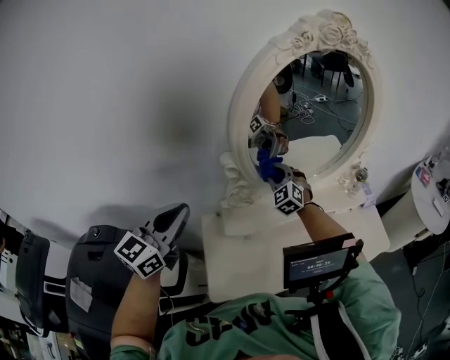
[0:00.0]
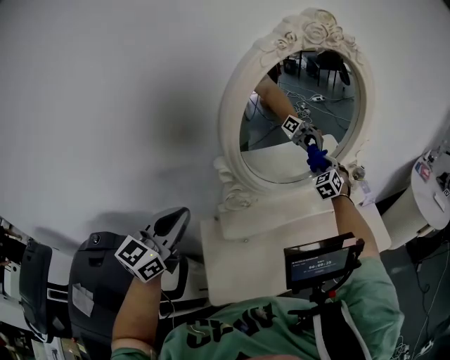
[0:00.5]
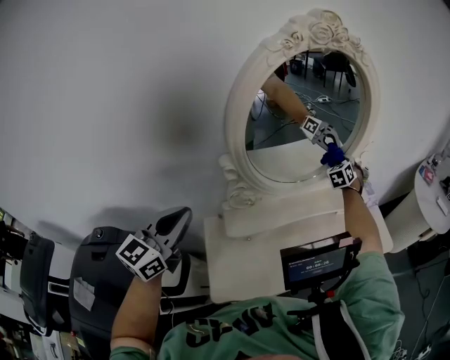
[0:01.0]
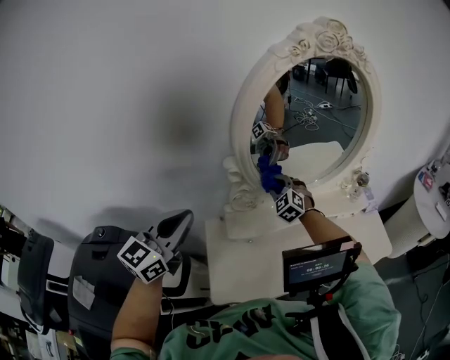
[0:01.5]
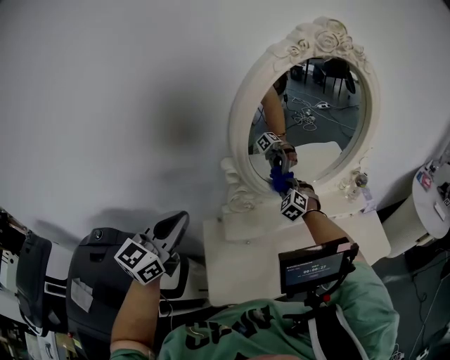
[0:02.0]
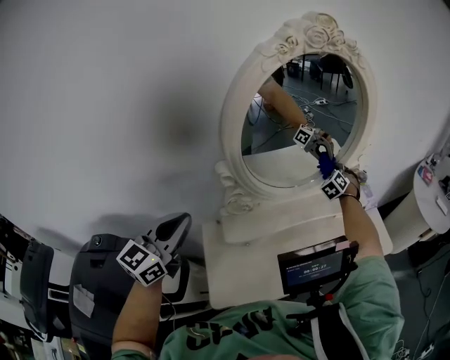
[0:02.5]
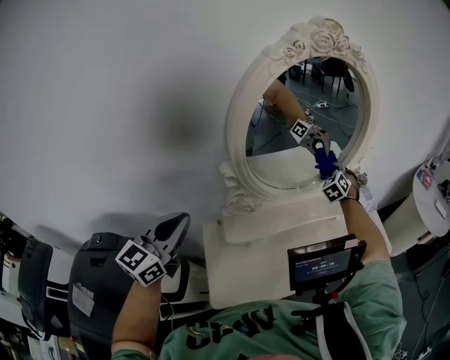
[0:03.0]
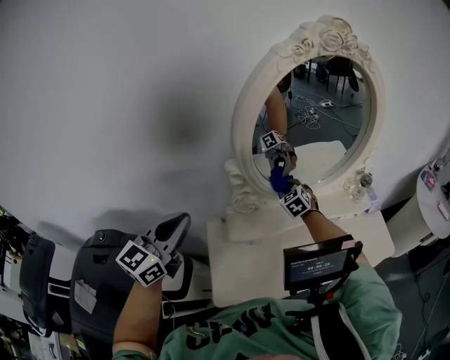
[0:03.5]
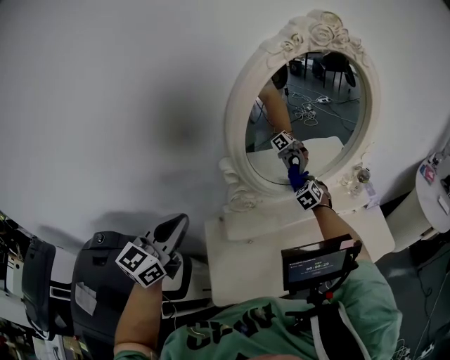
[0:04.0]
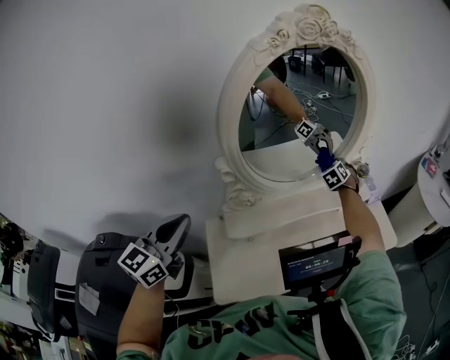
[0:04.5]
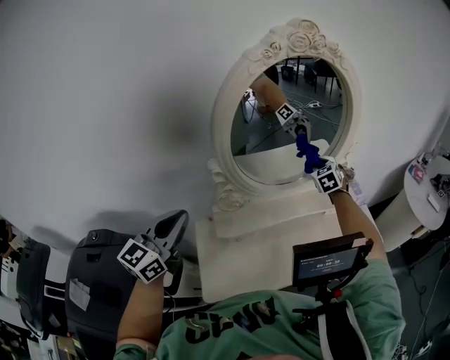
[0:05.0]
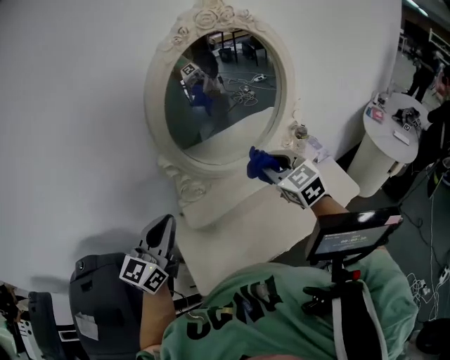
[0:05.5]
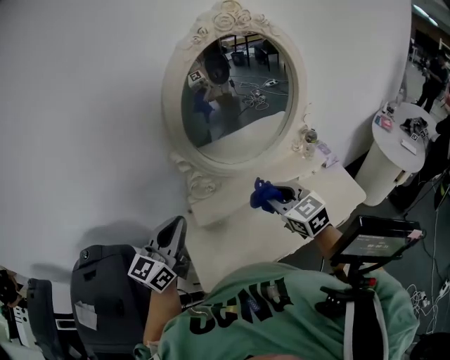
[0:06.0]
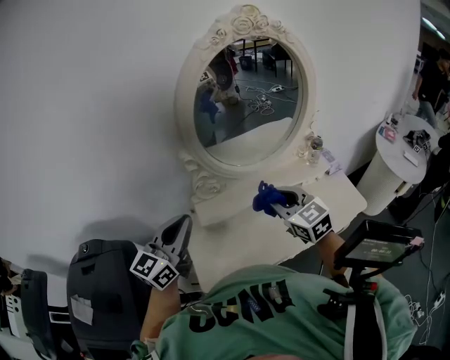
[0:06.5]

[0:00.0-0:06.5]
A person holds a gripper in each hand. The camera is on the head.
0:00.0 to 0:02.0: The right gripper swings left and right, approximately 30 cm each way, with 2 reversals.
0:02.0 to 0:04.5: The right gripper moves left and right over approximately 25 cm, changing direction 2 times, and swivels approximately 30 degrees.
0:04.5 to 0:06.5: The left gripper goes about 5 cm to the right. The right gripper shifts about 40 cm backward and upward, and changes its angle by approximately 50 degrees.

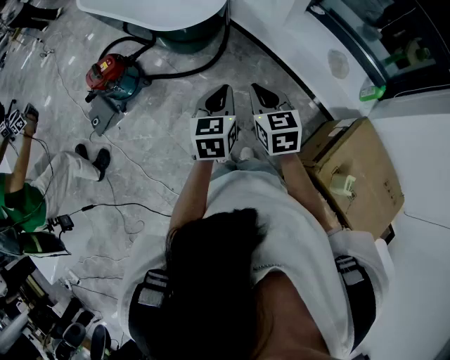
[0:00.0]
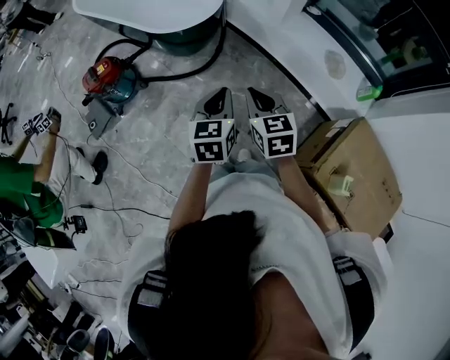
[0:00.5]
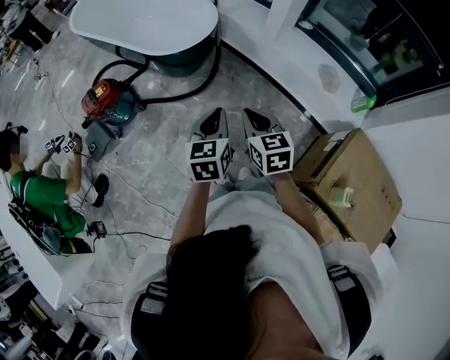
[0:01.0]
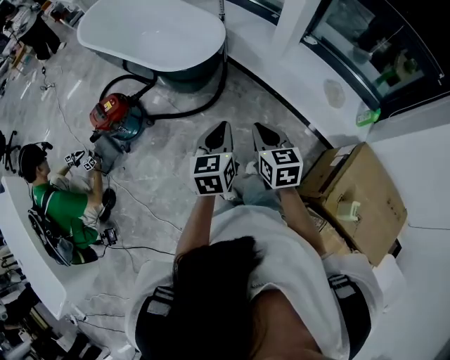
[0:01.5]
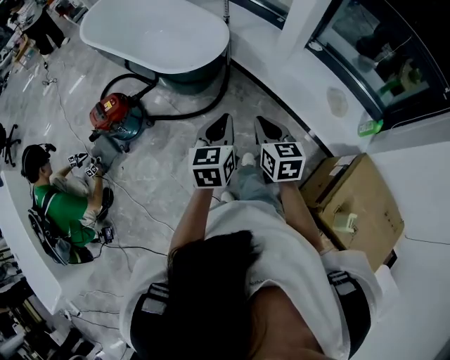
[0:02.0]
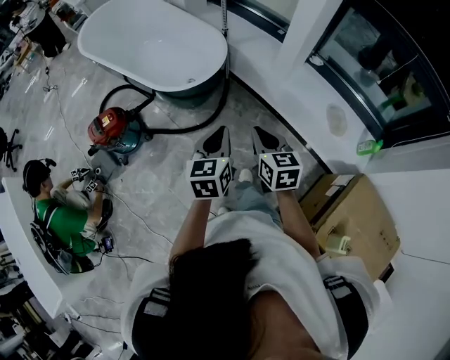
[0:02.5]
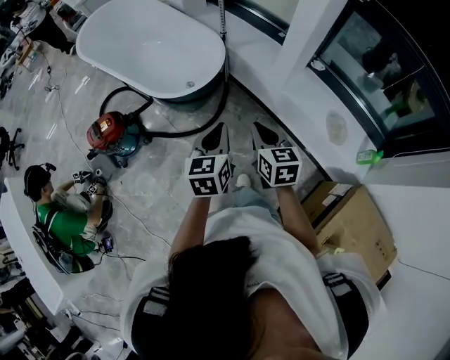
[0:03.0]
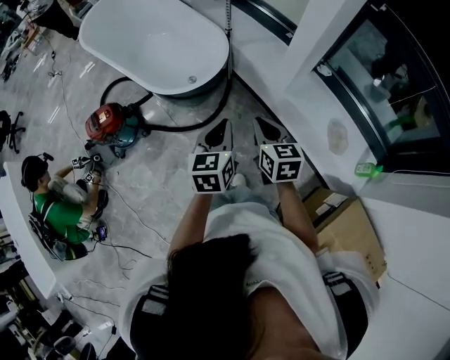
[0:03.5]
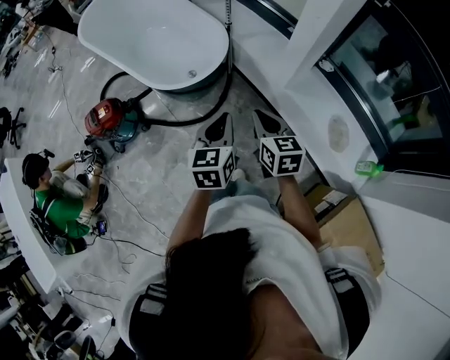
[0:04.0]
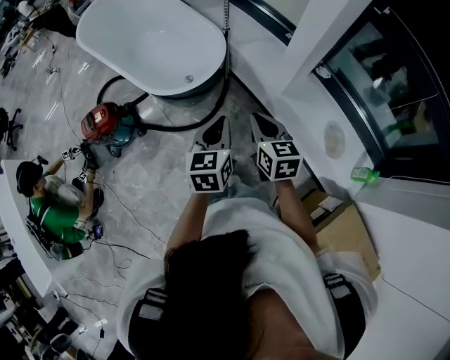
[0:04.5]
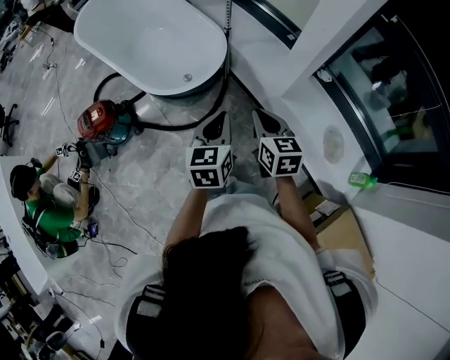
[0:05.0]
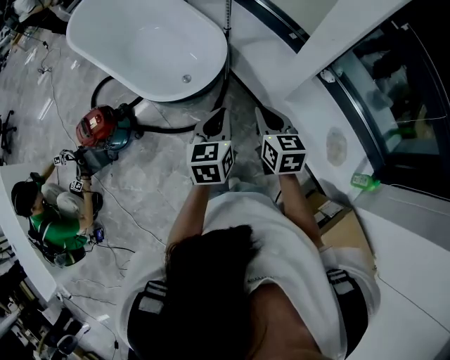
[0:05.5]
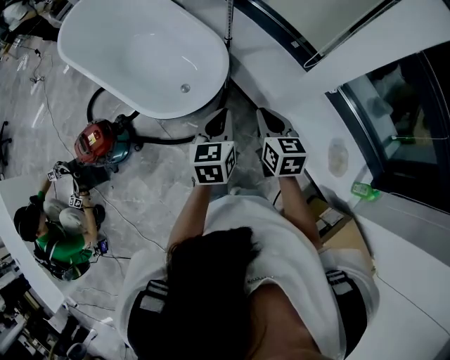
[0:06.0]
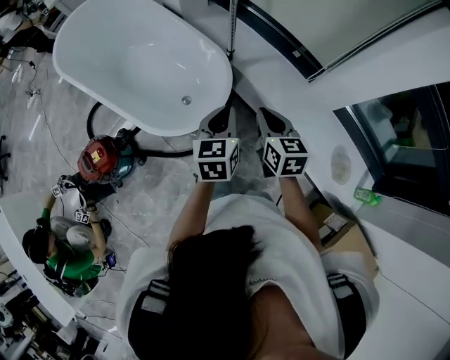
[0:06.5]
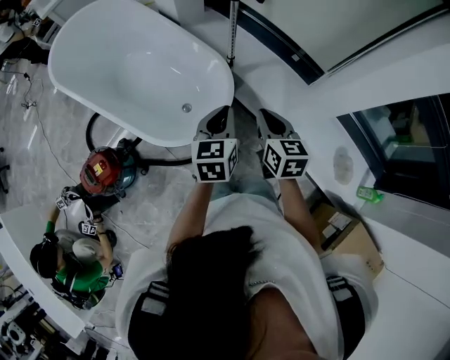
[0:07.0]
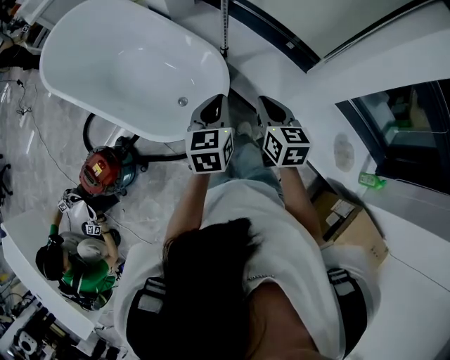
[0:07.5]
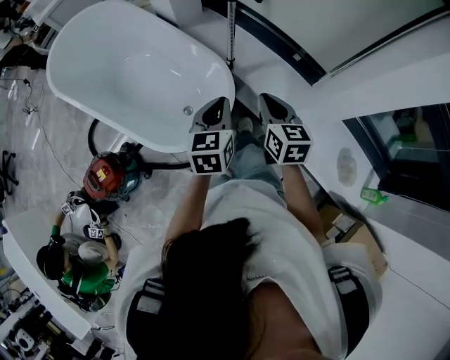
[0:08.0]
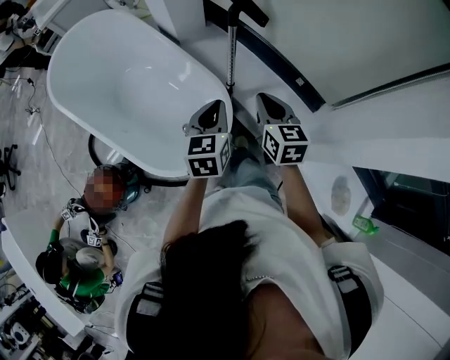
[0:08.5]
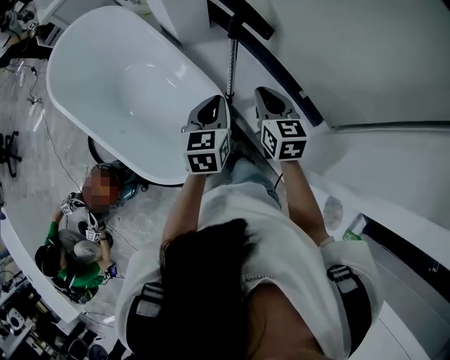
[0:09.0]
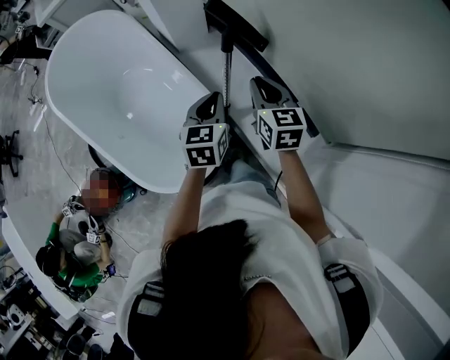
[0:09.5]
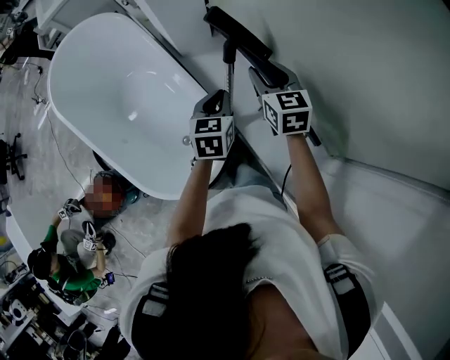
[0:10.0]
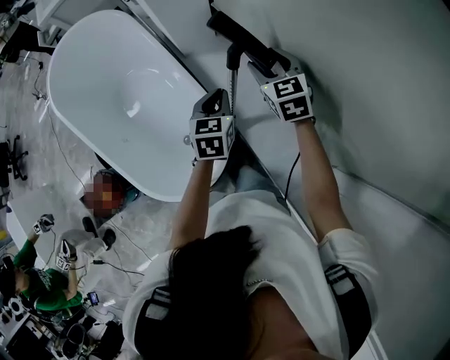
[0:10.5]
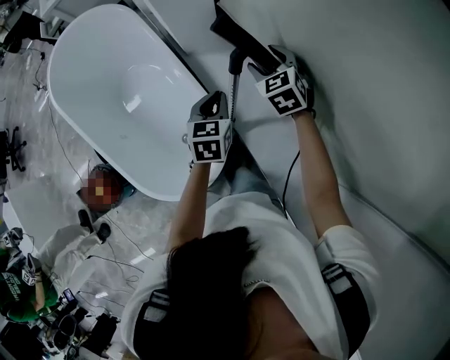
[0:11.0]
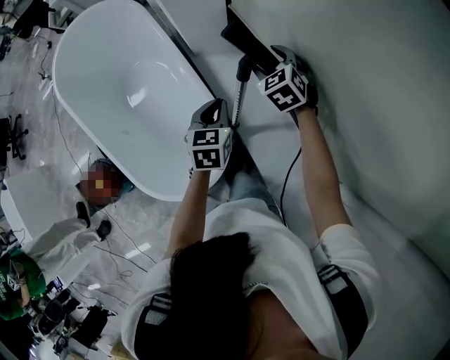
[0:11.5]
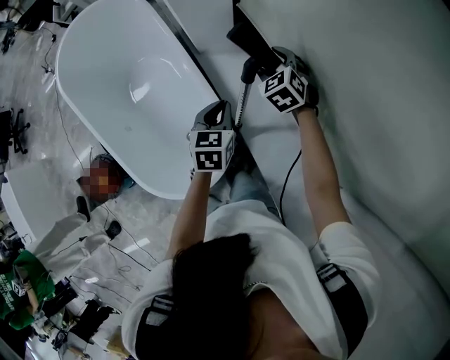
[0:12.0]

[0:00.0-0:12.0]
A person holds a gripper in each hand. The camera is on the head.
0:00.0 to 0:02.0: The two grippers go roughly 10 cm forward.
0:02.0 to 0:04.0: The grippers both shift forward and to the right by roughly 20 cm.
0:04.0 to 0:06.0: The two grippers go about 20 cm forward.
0:06.0 to 0:08.0: Both grippers move forward, some 15 cm.
0:08.0 to 0:10.0: Both grippers travel together forward, about 35 cm. The right gripper opens up.
0:10.0 to 0:12.0: The right gripper shifts roughly 15 cm forward and downward, swivels approximately 40 degrees, and opens its fingers, while the left gripper shifts by about 5 cm.

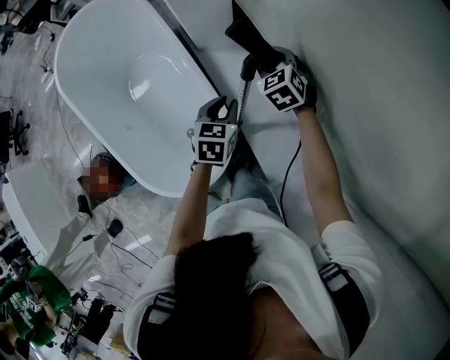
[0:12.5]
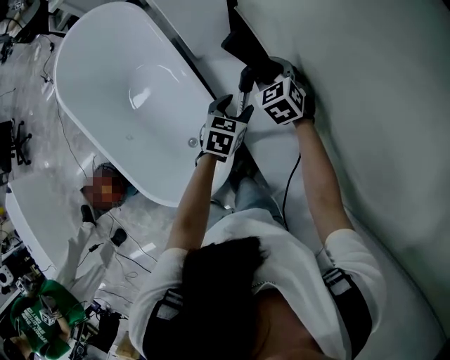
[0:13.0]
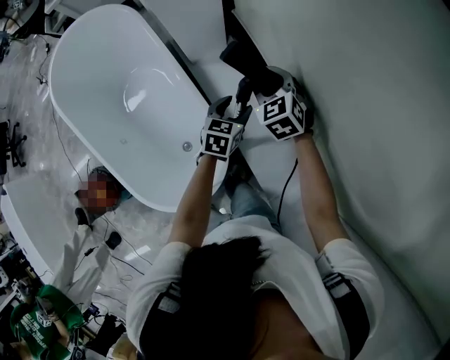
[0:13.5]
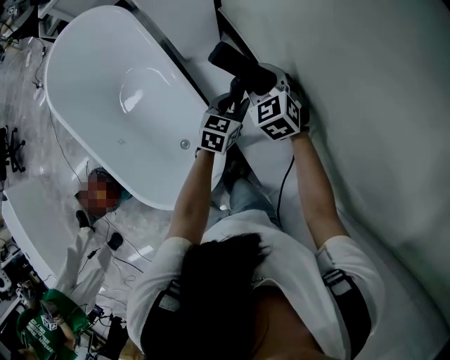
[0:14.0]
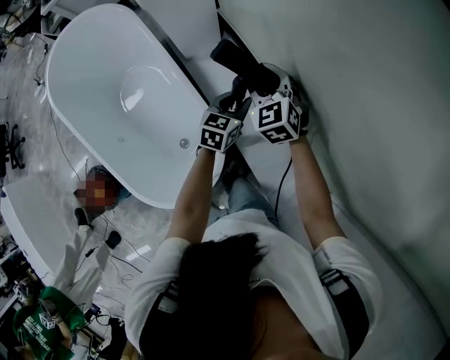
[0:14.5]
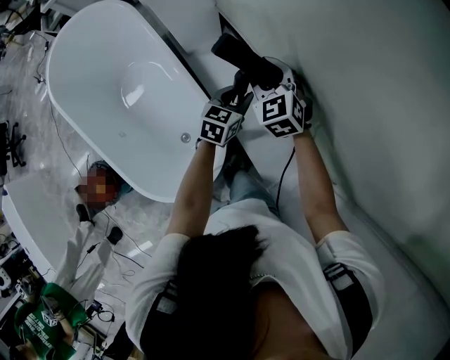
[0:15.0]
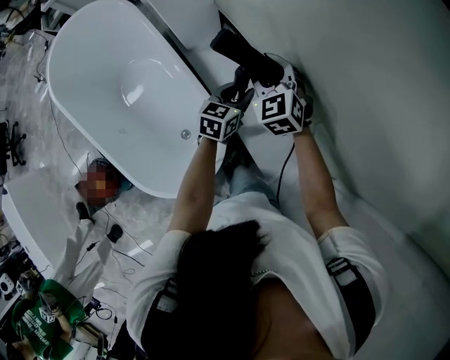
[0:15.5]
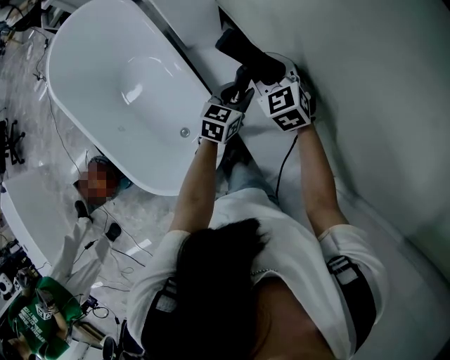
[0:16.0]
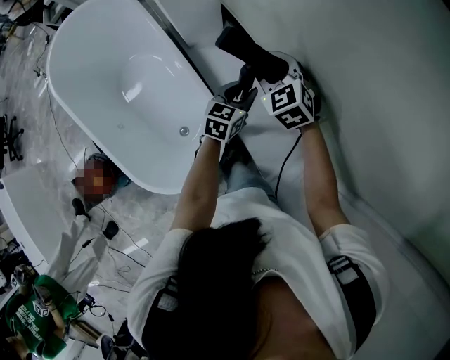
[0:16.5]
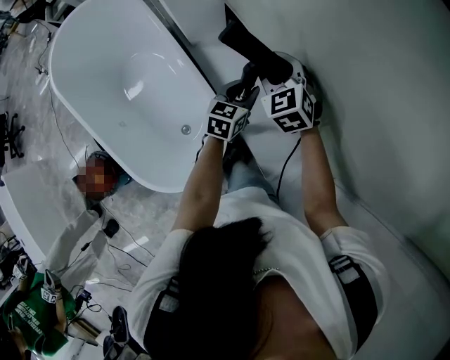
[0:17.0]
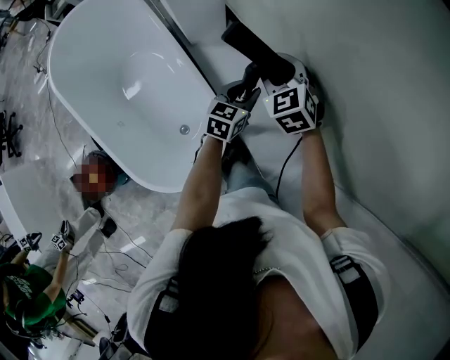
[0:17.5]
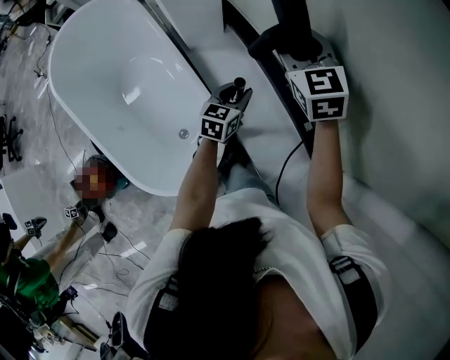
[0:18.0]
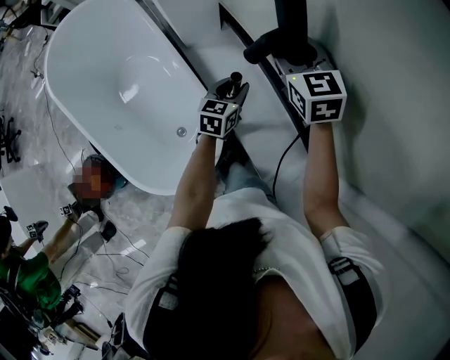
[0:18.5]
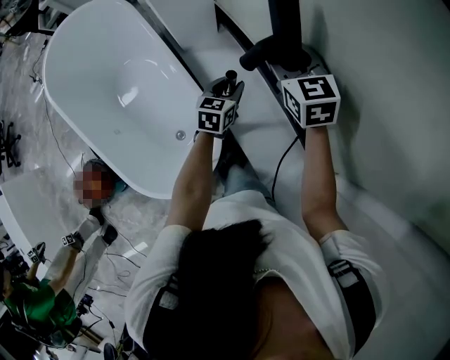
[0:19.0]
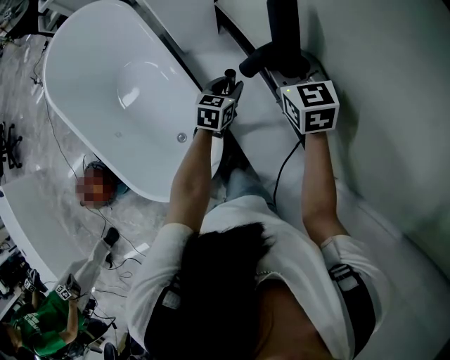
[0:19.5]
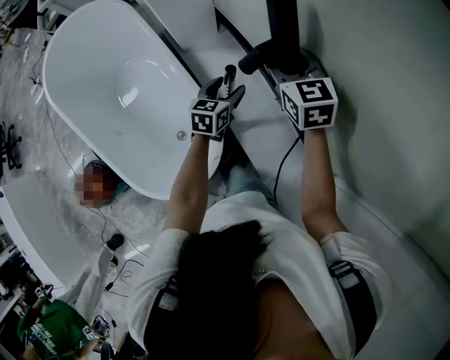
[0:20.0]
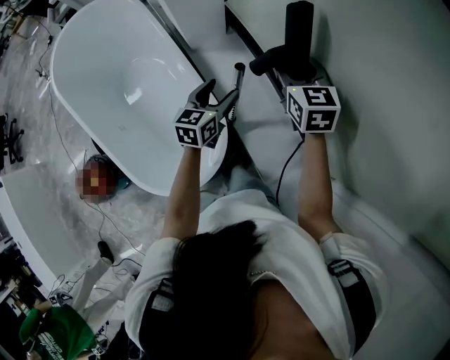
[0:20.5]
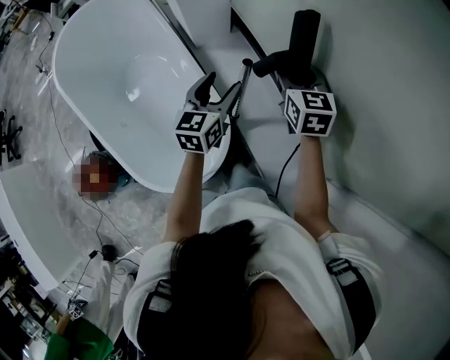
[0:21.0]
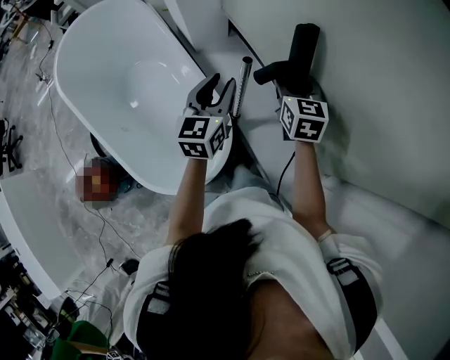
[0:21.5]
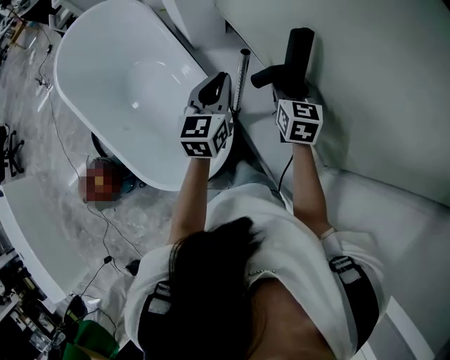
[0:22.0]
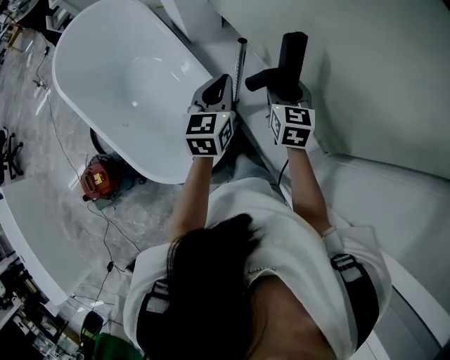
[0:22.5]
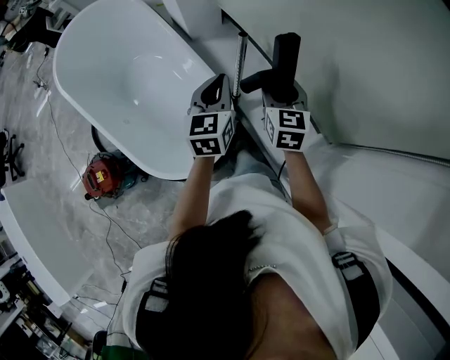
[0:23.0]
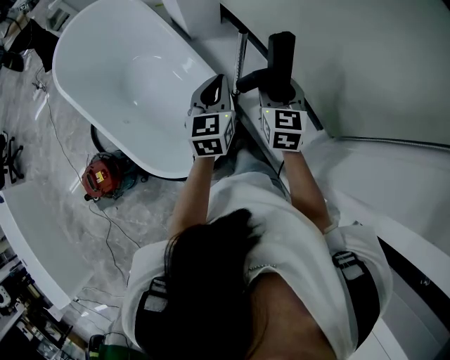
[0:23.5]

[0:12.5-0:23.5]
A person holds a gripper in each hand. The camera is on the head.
0:12.5 to 0:14.5: The right gripper shifts by roughly 5 cm, while the left gripper heads to the right, covering approximately 10 cm, and opens and closes again.
0:14.5 to 0:16.0: The grippers move only a little.
0:16.0 to 0:18.0: The right gripper moves upward, about 15 cm.
0:18.0 to 0:20.0: The left gripper opens its fingers. Meanwhile the right gripper goes some 5 cm downward.
0:20.0 to 0:21.5: The left gripper shifts roughly 20 cm upward, backward and to the left, changes its angle by roughly 20 degrees, and closes up, while the right gripper heads backward, covering approximately 10 cm.
0:21.5 to 0:23.5: Both grippers travel together backward, about 10 cm. The left gripper closes up.
